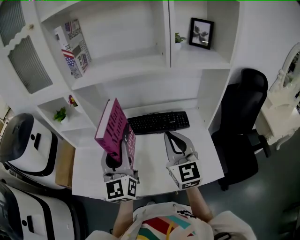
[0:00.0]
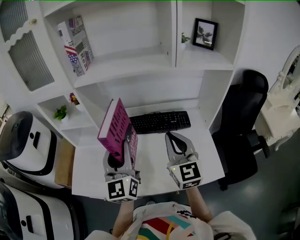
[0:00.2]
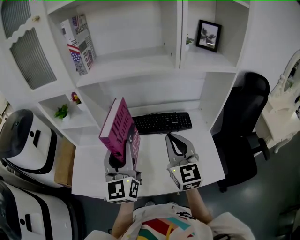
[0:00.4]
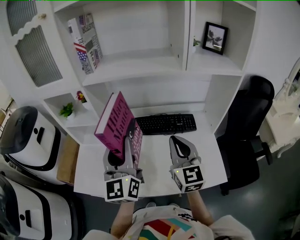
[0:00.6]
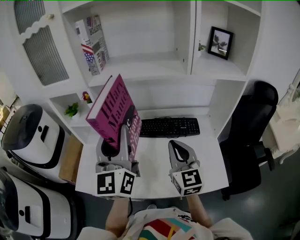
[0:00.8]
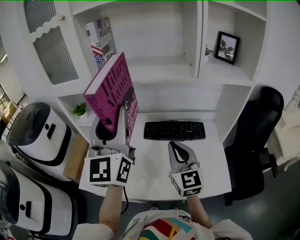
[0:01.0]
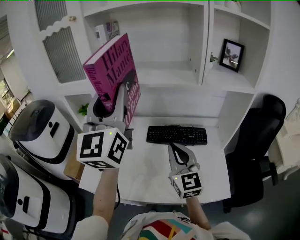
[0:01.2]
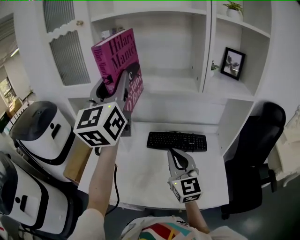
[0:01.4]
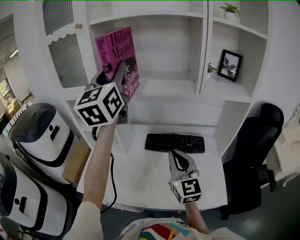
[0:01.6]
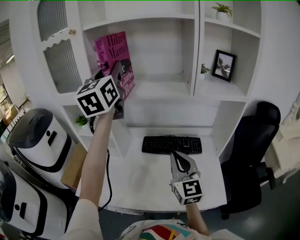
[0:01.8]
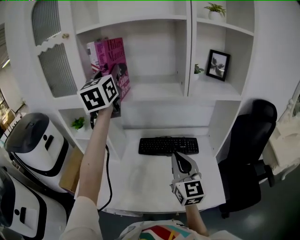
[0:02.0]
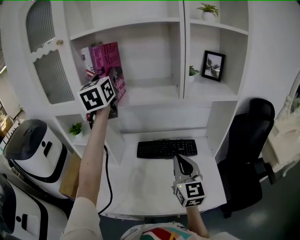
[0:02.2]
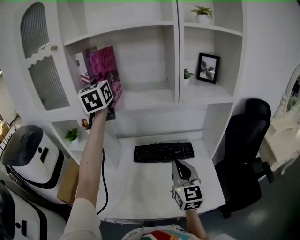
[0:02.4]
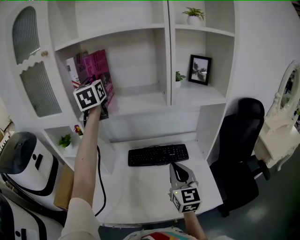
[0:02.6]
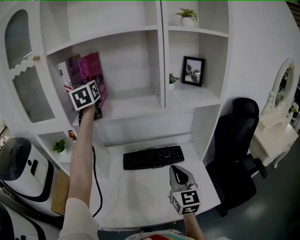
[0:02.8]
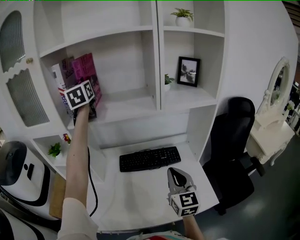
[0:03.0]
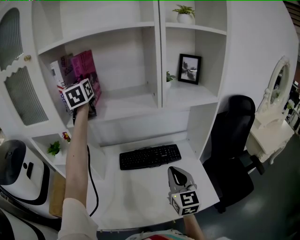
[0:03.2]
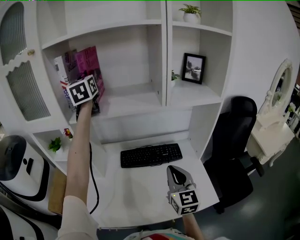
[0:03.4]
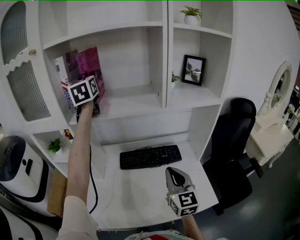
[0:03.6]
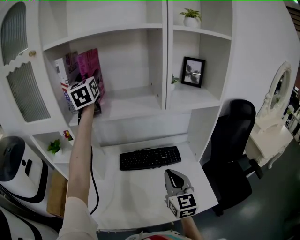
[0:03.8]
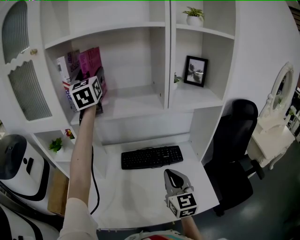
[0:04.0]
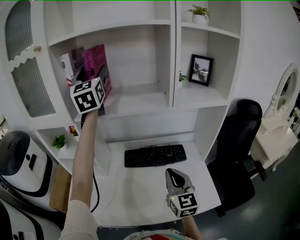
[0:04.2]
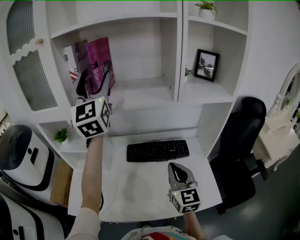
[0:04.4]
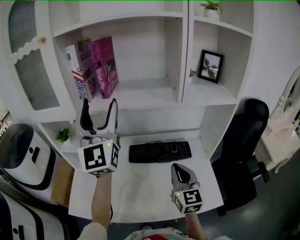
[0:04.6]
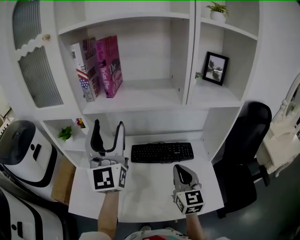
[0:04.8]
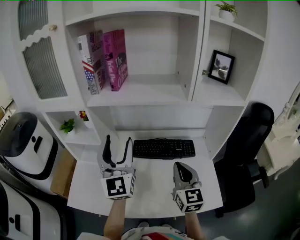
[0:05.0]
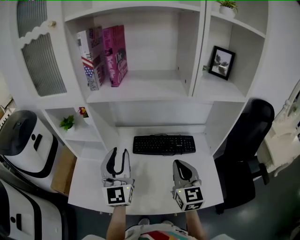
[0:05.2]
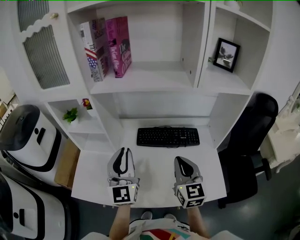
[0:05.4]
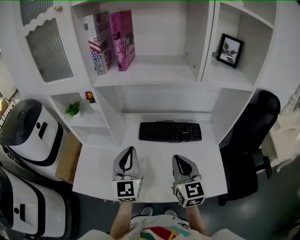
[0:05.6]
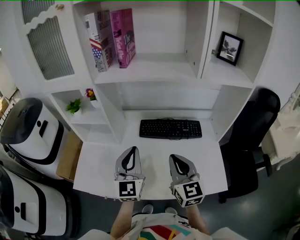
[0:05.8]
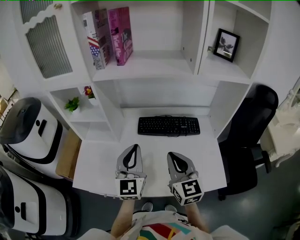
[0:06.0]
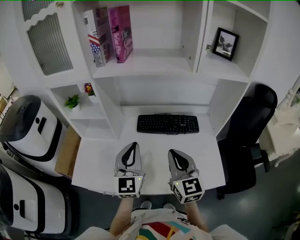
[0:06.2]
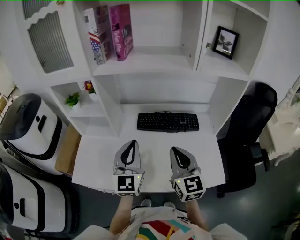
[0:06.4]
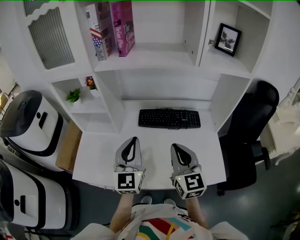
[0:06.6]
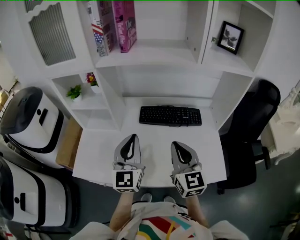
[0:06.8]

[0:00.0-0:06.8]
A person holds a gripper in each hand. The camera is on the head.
0:00.0 to 0:01.4: The right gripper moves to the left, roughly 5 cm. Meanwhile the left gripper travels upward by about 25 cm.
0:01.4 to 0:02.8: The right gripper goes about 10 cm to the right, and swivels some 20 degrees, while the left gripper heads forward, covering some 25 cm.
0:02.8 to 0:04.0: The left gripper opens its fingers.
0:04.0 to 0:05.4: The left gripper shifts roughly 40 cm downward and backward, and closes.
0:05.4 to 0:06.8: The right gripper moves some 5 cm. Meanwhile the left gripper shifts by some 5 cm.

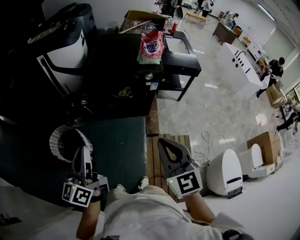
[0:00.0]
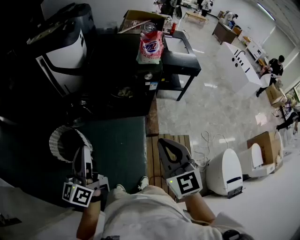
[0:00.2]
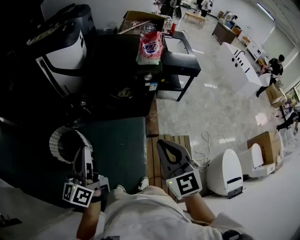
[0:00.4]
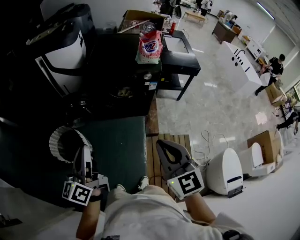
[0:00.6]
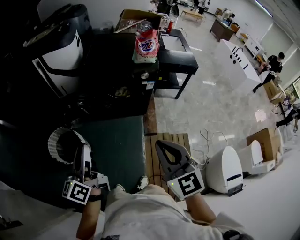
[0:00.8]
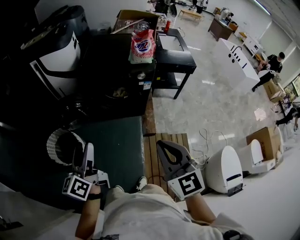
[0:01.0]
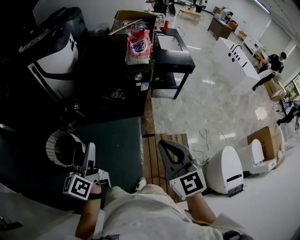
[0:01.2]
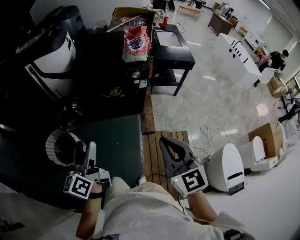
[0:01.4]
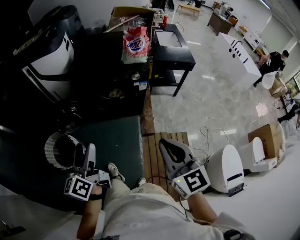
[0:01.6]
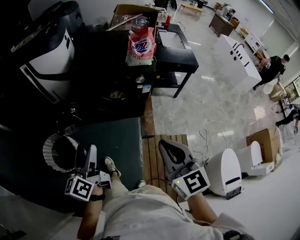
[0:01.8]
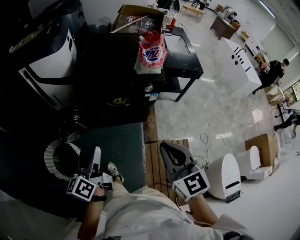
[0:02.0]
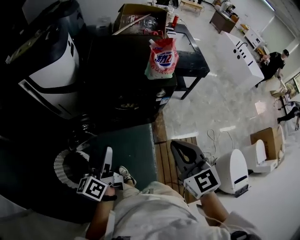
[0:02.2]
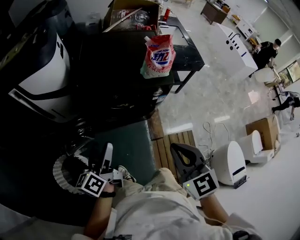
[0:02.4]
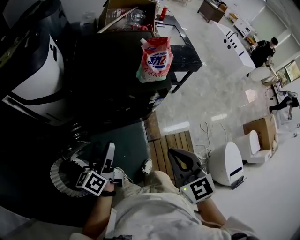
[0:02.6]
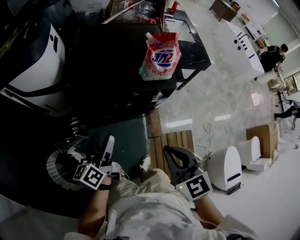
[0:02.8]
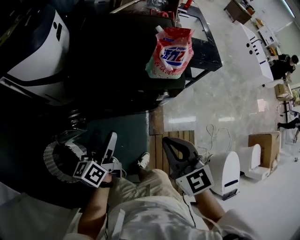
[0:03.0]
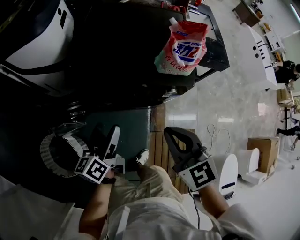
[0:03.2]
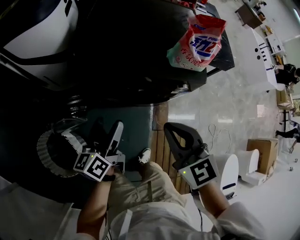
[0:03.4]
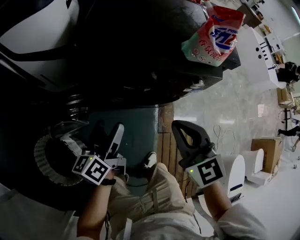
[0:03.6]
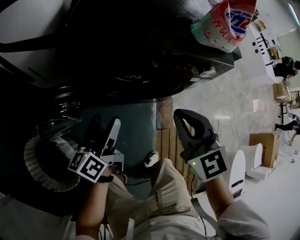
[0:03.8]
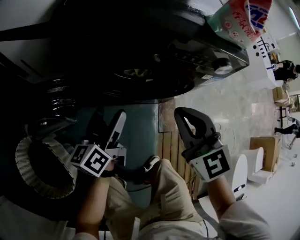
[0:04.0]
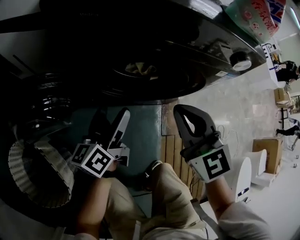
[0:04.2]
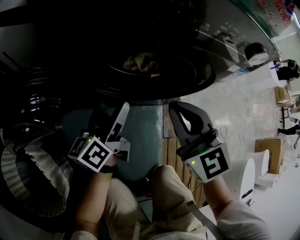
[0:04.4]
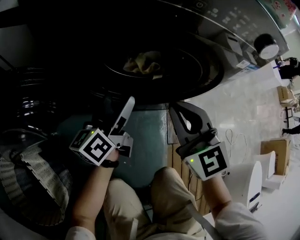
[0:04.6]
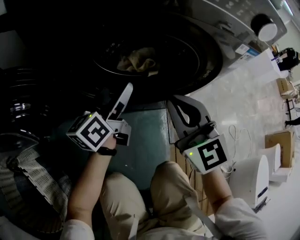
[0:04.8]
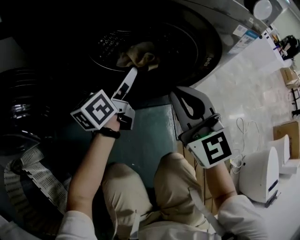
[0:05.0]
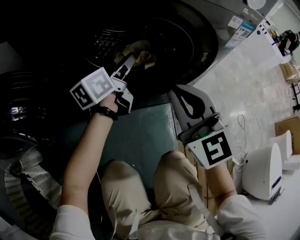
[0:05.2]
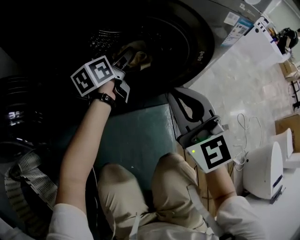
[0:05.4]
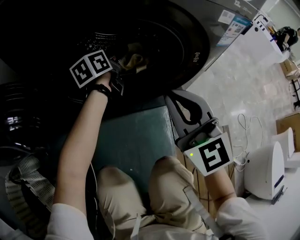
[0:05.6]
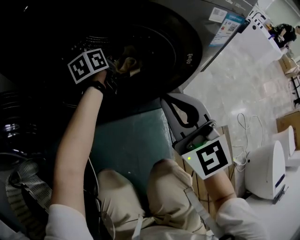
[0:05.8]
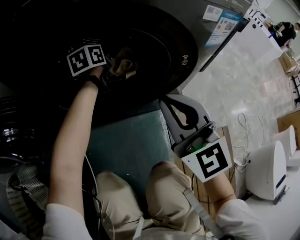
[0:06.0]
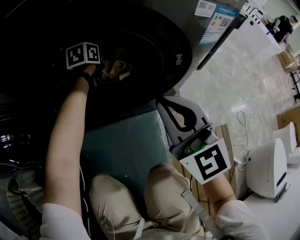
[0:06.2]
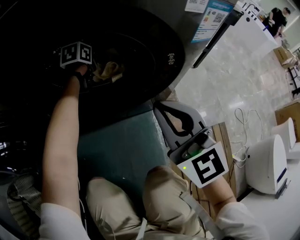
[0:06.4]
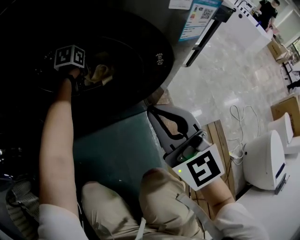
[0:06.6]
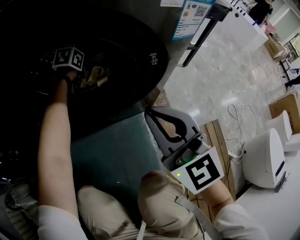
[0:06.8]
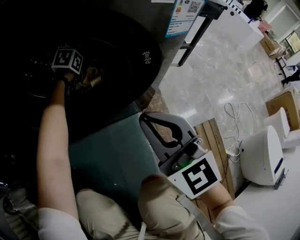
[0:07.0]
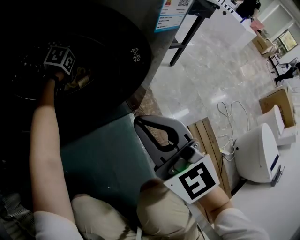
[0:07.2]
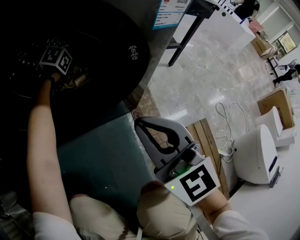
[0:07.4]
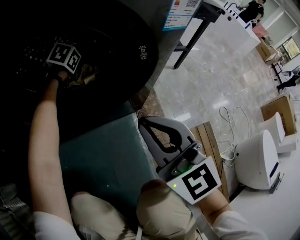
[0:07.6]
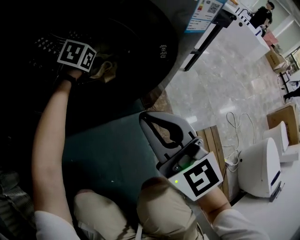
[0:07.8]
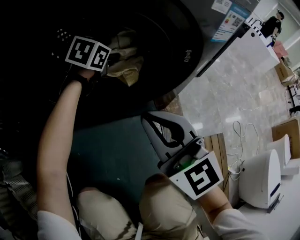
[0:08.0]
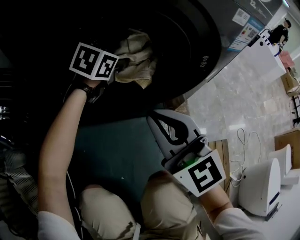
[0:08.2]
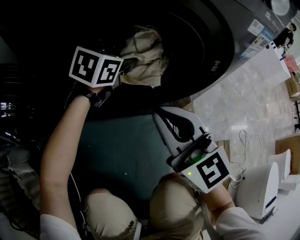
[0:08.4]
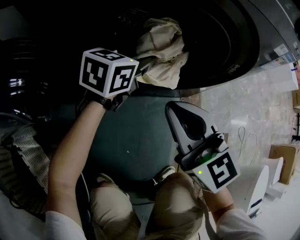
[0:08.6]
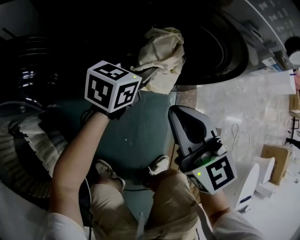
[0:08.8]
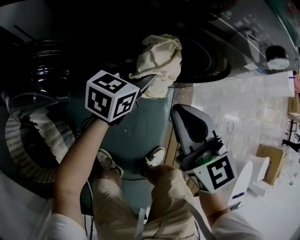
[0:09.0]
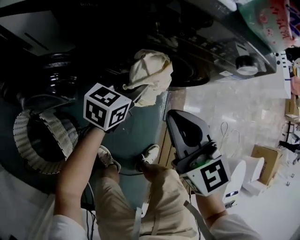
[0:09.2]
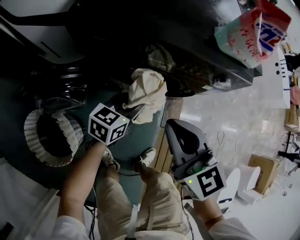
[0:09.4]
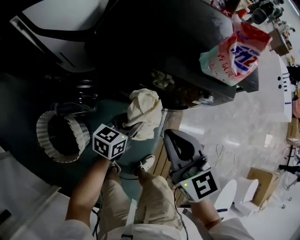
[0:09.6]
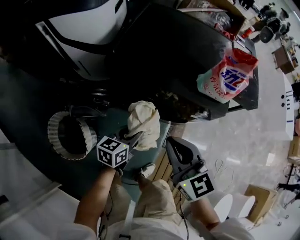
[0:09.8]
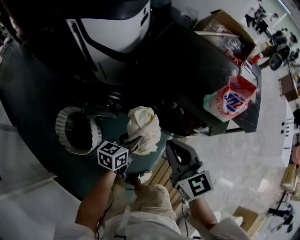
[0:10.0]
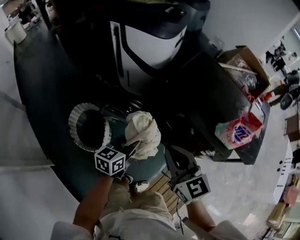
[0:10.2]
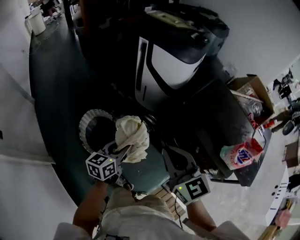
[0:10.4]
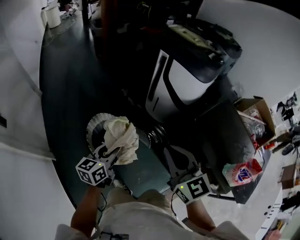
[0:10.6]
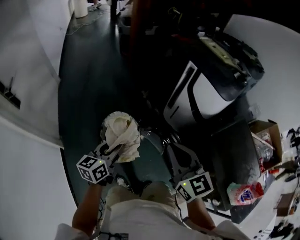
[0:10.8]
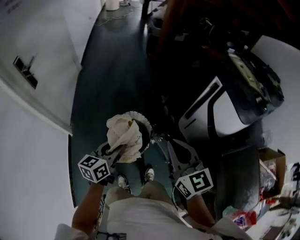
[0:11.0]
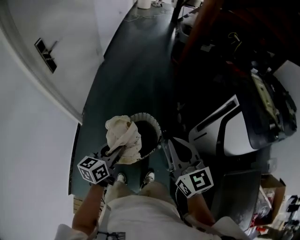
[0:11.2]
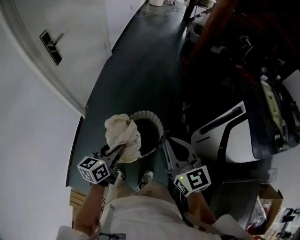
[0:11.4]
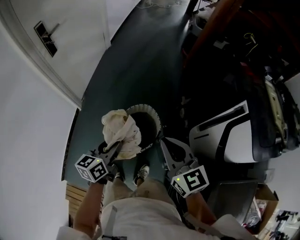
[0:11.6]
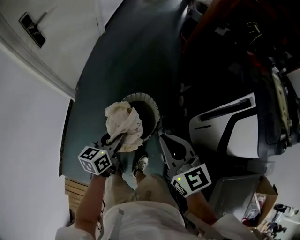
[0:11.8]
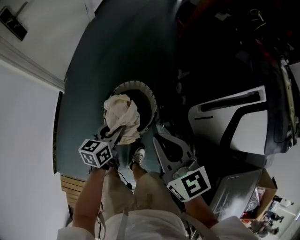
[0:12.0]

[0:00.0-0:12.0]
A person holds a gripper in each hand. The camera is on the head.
0:00.0 to 0:01.6: The left gripper travels to the right, forward and downward by roughly 15 cm, and opens its fingers, while the right gripper goes approximately 10 cm to the right.
0:01.6 to 0:03.0: Both grippers travel together forward, approximately 35 cm.
0:03.0 to 0:04.4: The two grippers go about 40 cm downward.
0:04.4 to 0:06.0: The right gripper travels to the right and downward by approximately 15 cm; the left gripper goes roughly 30 cm forward, downward and to the right, and swivels about 40 degrees.
0:06.0 to 0:07.6: The left gripper heads downward, covering approximately 10 cm, points its fingers approximately 30 degrees further downward, and closes; the right gripper is displaced to the right by approximately 5 cm.
0:07.6 to 0:09.0: The right gripper shifts approximately 20 cm to the left and upward, and rotates some 20 degrees. The left gripper travels backward and upward by some 35 cm, and tips its fingers upward by approximately 40 degrees.
0:09.0 to 0:10.4: The two grippers go about 40 cm upward. The right gripper turns by some 40 degrees. The left gripper changes its angle by about 60 degrees.
0:10.4 to 0:12.0: The right gripper changes place by roughly 35 cm, and swivels roughly 50 degrees, while the left gripper ends up approximately 35 cm from where it was, and turns by approximately 50 degrees.

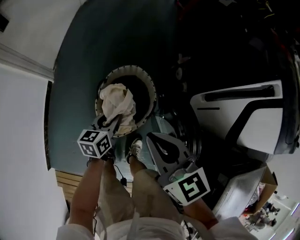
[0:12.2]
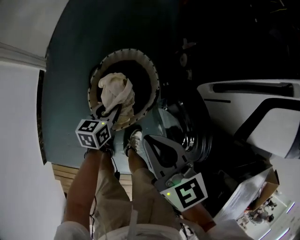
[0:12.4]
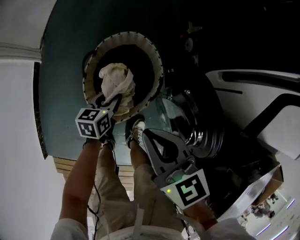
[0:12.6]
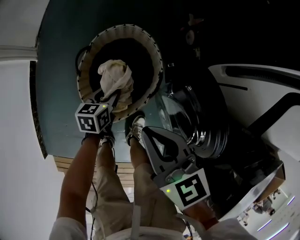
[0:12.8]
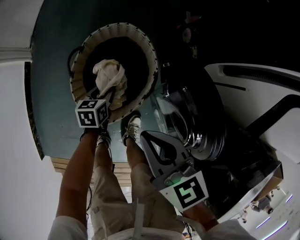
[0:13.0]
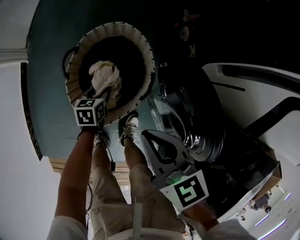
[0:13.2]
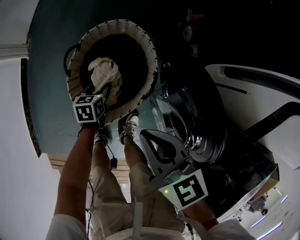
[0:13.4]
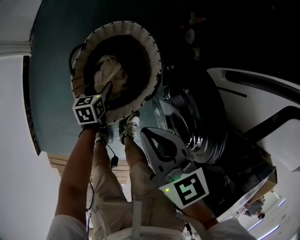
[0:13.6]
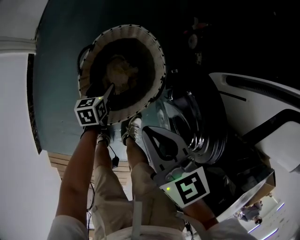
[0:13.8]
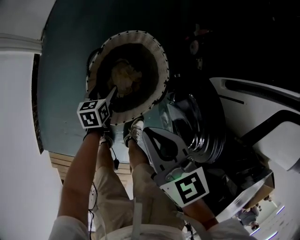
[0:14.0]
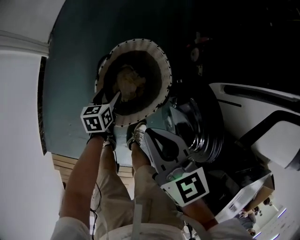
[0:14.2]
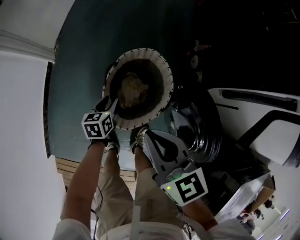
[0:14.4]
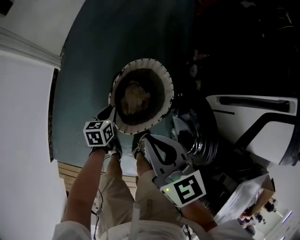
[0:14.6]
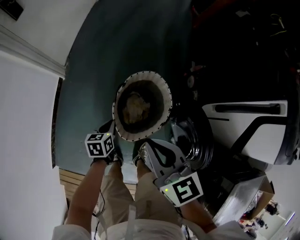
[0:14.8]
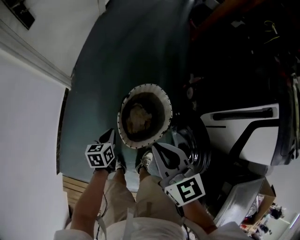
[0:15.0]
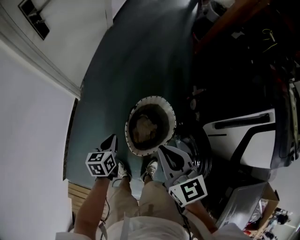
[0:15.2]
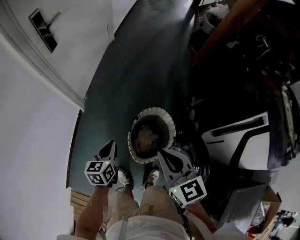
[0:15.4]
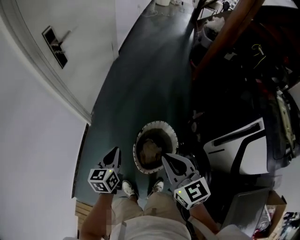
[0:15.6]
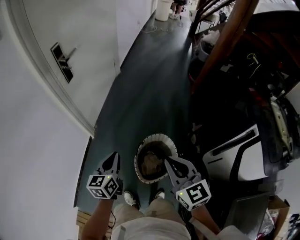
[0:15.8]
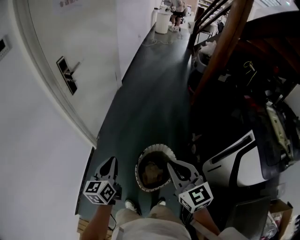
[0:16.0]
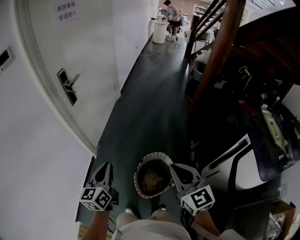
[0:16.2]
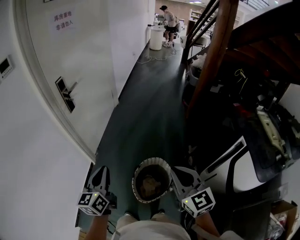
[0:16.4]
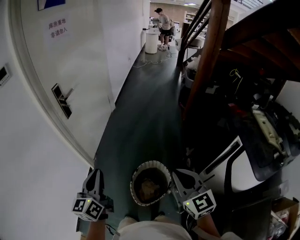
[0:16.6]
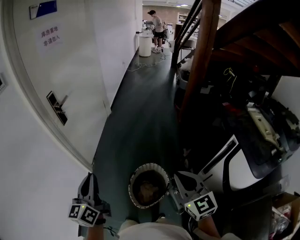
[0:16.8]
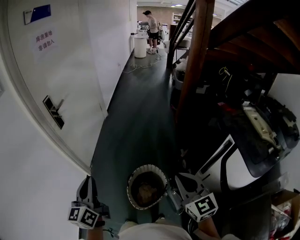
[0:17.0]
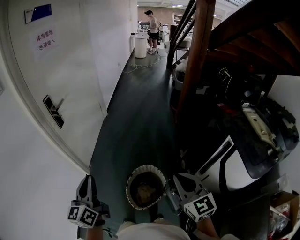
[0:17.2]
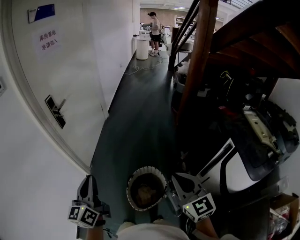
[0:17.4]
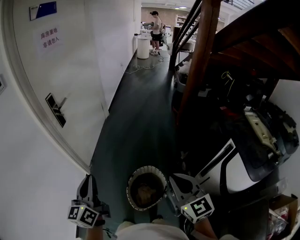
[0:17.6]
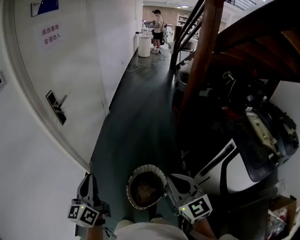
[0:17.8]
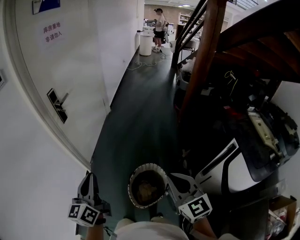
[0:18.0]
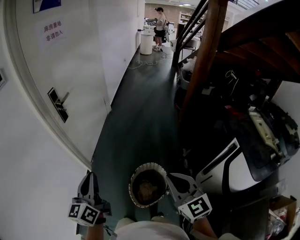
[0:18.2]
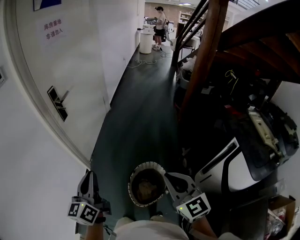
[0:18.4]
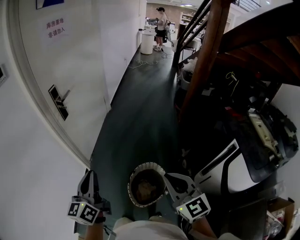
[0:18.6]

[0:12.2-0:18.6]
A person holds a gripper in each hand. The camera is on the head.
0:12.2 to 0:13.8: The grippers both shift downward by approximately 25 cm. The left gripper changes its angle by approximately 20 degrees, and opens.
0:13.8 to 0:15.4: The two grippers go approximately 40 cm upward and to the left. The left gripper changes its angle by some 20 degrees, and closes its fingers.
0:15.4 to 0:17.0: The right gripper is displaced upward and to the right by about 25 cm. Meanwhile the left gripper heads upward, covering about 35 cm, and tips its fingers upward by roughly 30 degrees.
0:17.0 to 0:18.6: The right gripper heads to the left, covering some 10 cm.
